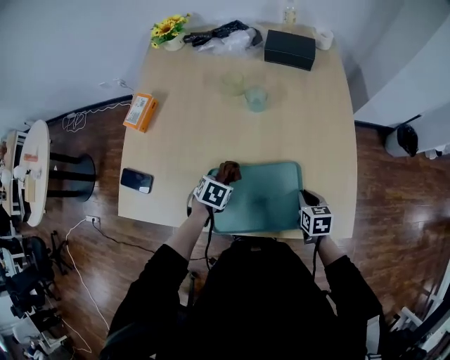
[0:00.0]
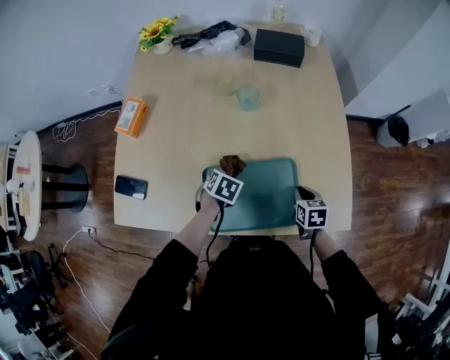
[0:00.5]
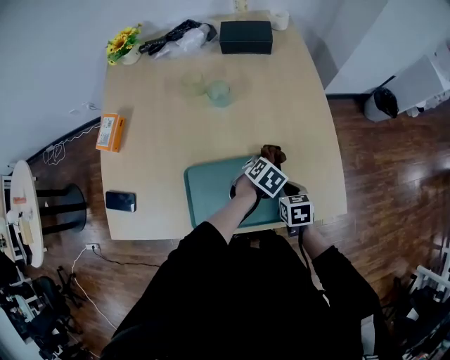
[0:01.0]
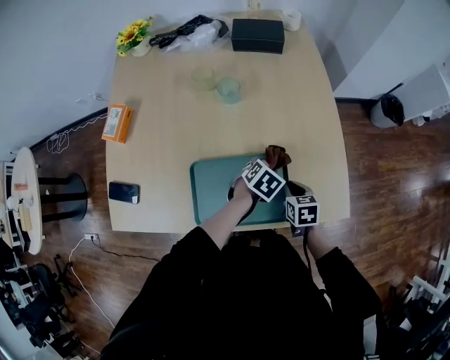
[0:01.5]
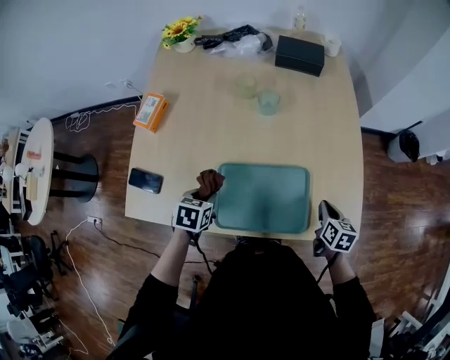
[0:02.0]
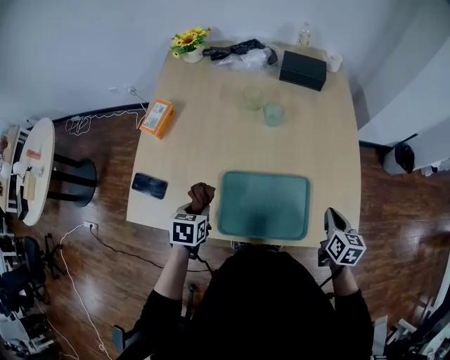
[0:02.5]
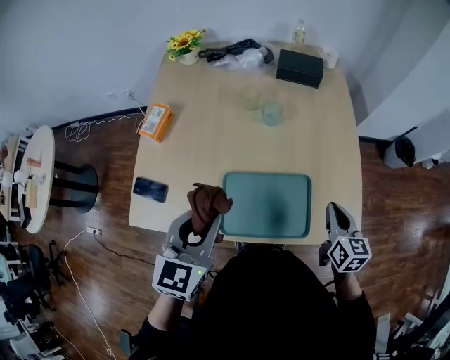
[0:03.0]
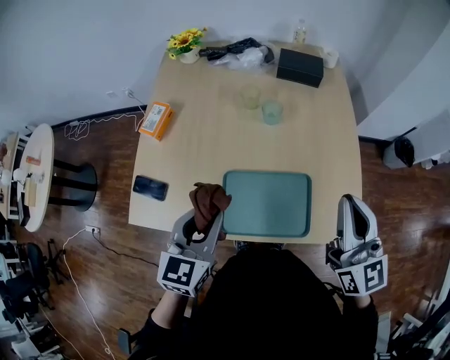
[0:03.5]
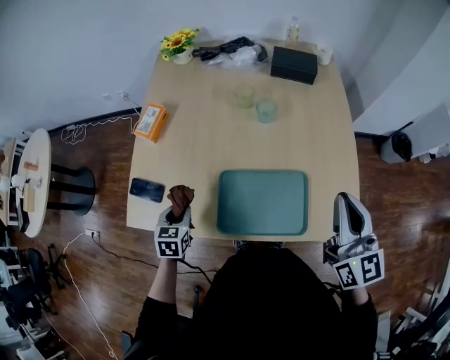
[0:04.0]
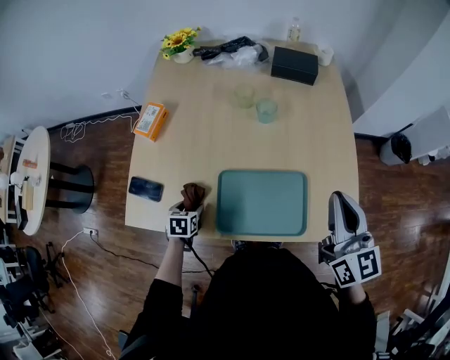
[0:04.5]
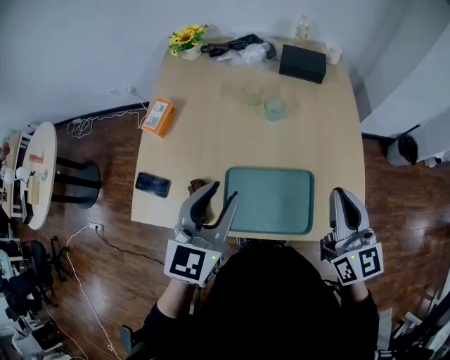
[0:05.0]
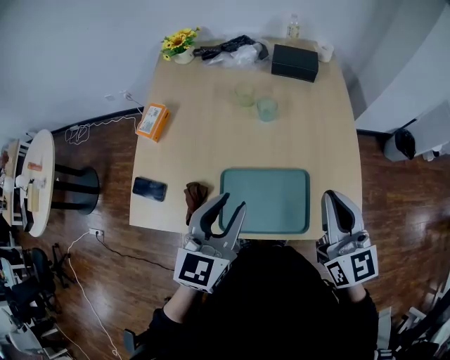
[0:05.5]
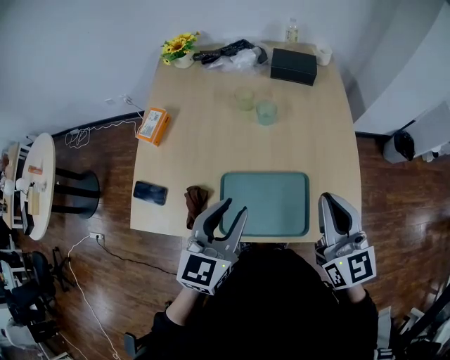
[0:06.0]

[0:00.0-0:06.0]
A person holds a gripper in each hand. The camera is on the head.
0:00.0 to 0:02.0: The right gripper changes place by about 5 cm, while the left gripper shifts some 10 cm upward and backward, and travels to the right and back again, roughly 25 cm each way.
0:02.0 to 0:04.0: The right gripper shifts roughly 30 cm upward, and points its fingers some 40 degrees further upward, while the left gripper moves to the left, approximately 10 cm, and reaches roughly 25 cm upward, then returns.
0:04.0 to 0:06.0: The left gripper travels upward and to the right by approximately 30 cm, and tips its fingers upward by roughly 30 degrees.

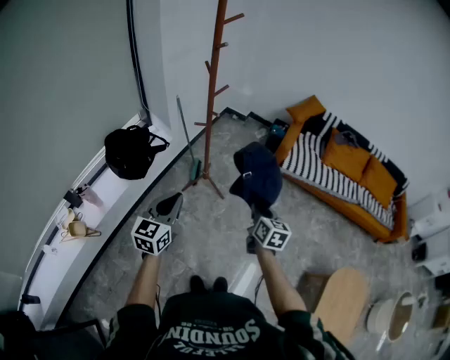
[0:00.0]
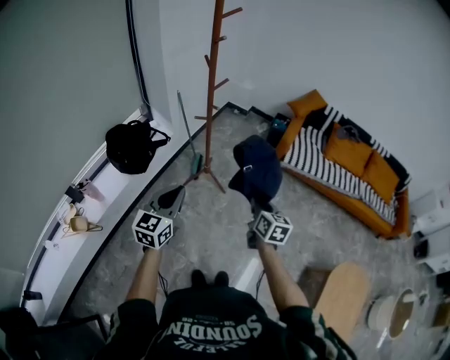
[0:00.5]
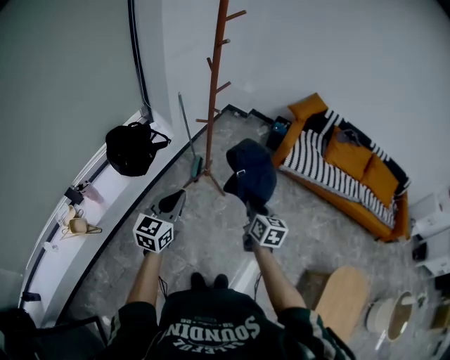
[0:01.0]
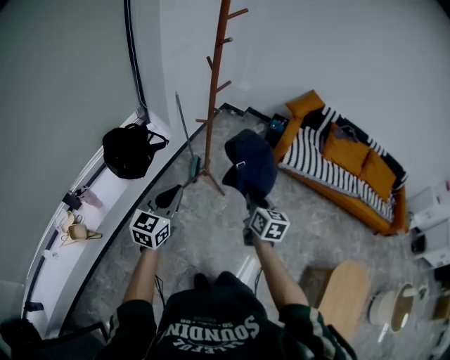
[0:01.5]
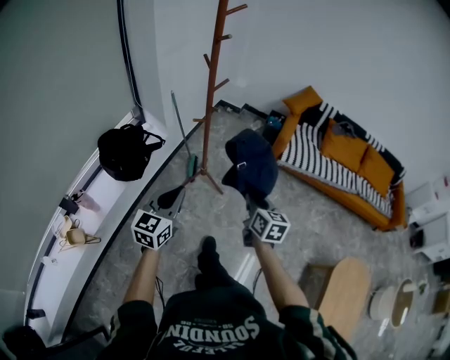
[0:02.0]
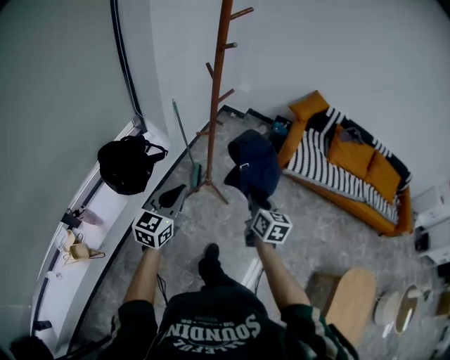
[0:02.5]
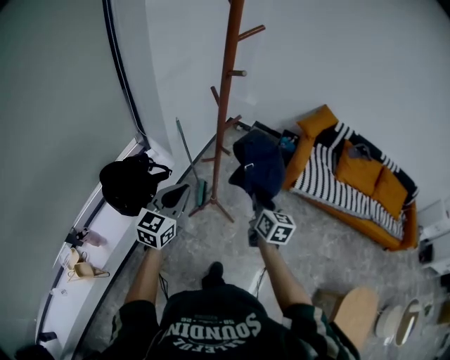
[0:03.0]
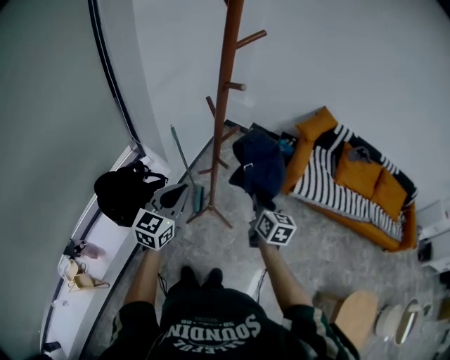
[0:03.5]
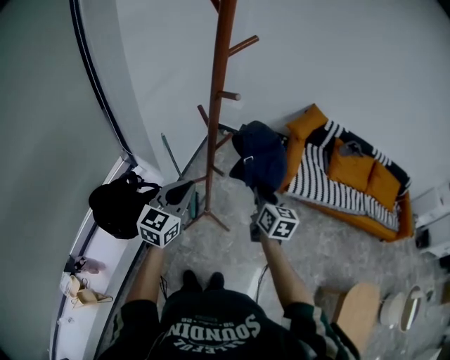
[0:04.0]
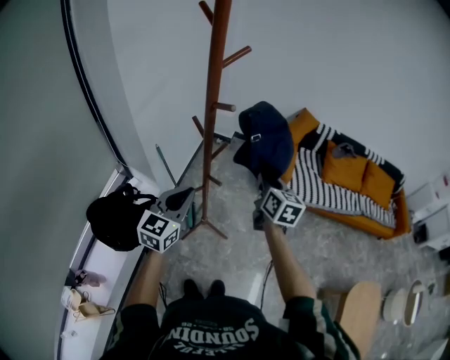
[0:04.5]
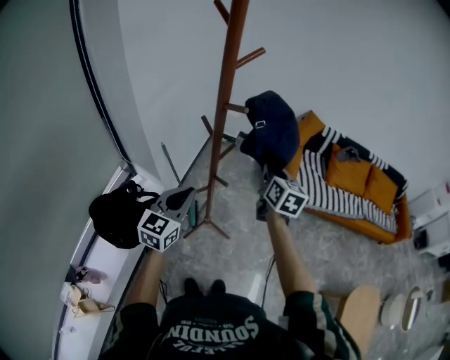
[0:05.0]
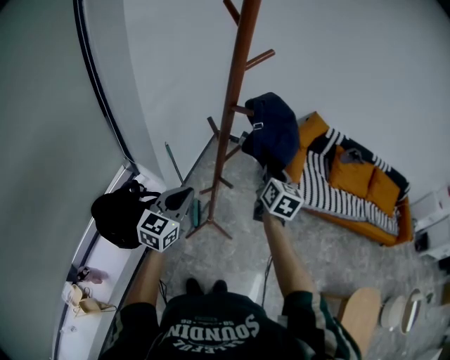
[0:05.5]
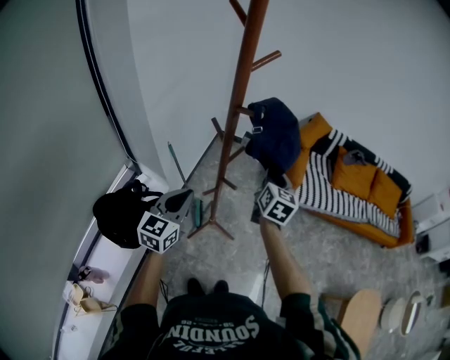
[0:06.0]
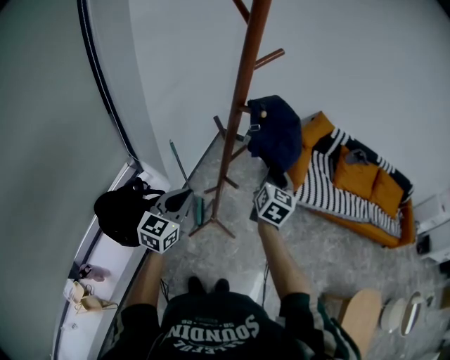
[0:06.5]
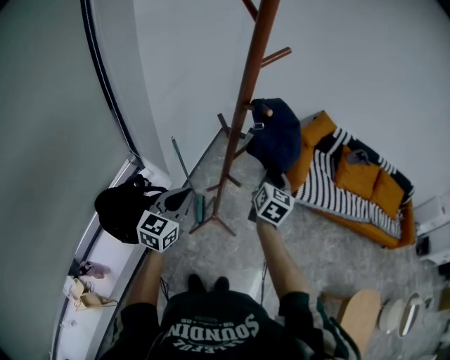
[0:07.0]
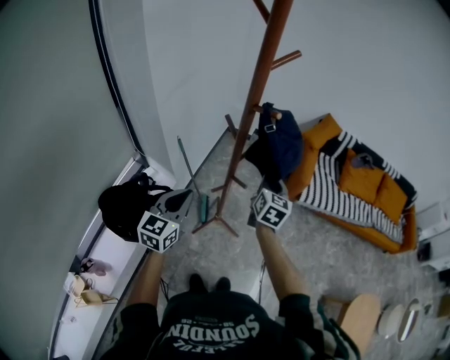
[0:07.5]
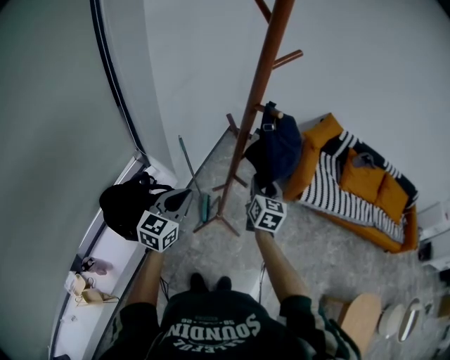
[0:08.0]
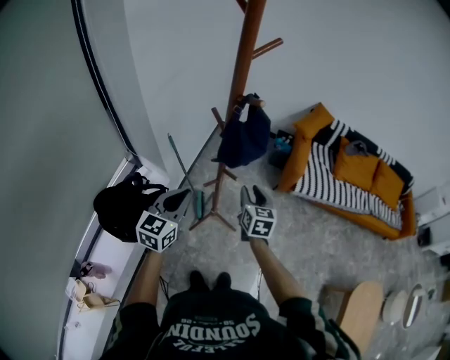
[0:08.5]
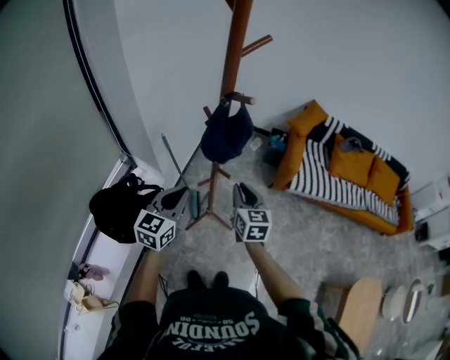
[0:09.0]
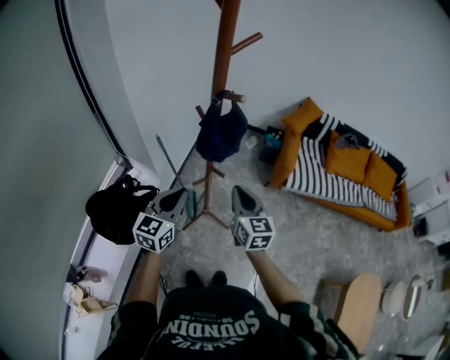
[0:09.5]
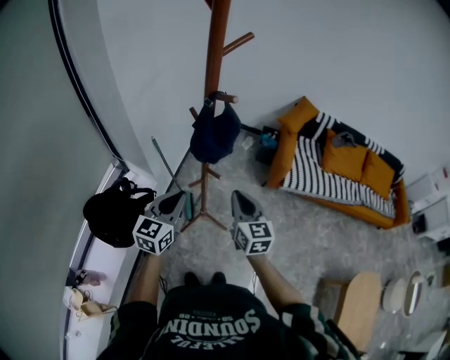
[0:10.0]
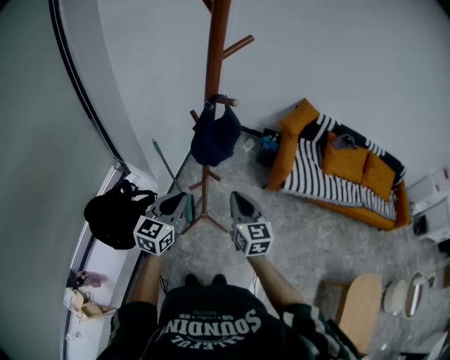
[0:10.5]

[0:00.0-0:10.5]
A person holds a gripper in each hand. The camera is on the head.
0:00.0 to 0:02.0: The right gripper goes approximately 5 cm to the left.
0:02.0 to 0:04.0: The grippers both shift forward by some 30 cm.
0:04.0 to 0:06.5: The right gripper heads forward and upward, covering approximately 10 cm, and turns by some 20 degrees. The left gripper goes some 5 cm to the left.
0:06.5 to 0:08.5: The right gripper shifts some 15 cm downward and backward, turns by some 20 degrees, and opens up.
0:08.5 to 0:10.5: The right gripper heads upward and backward, covering approximately 10 cm, and closes.

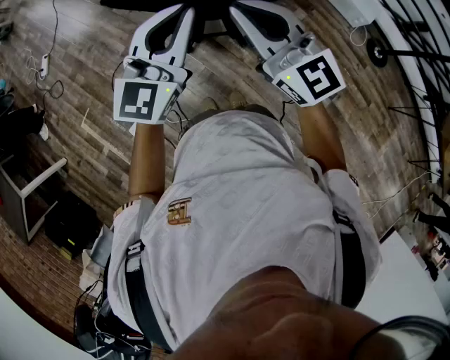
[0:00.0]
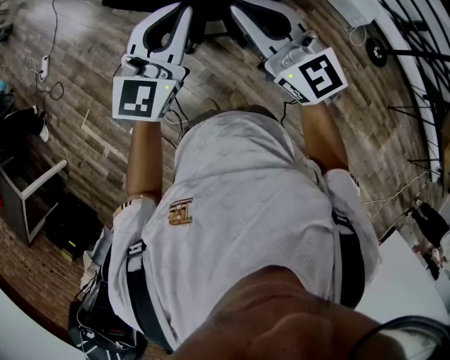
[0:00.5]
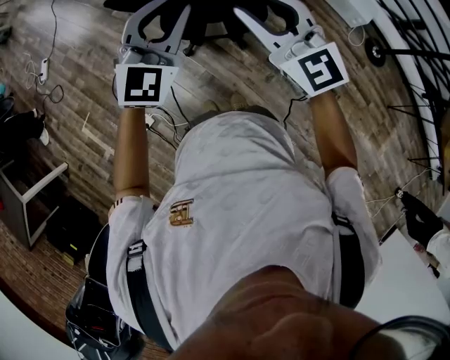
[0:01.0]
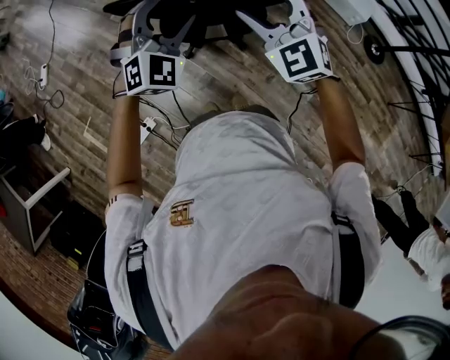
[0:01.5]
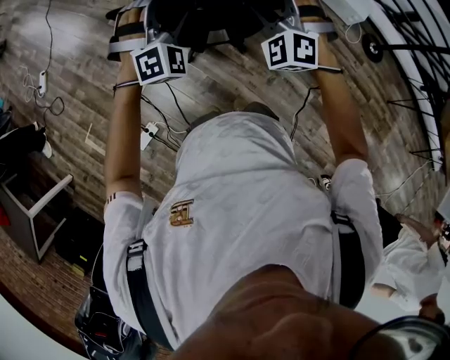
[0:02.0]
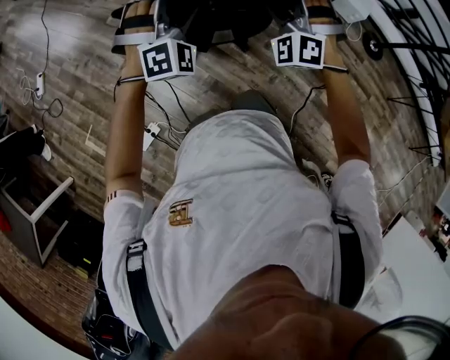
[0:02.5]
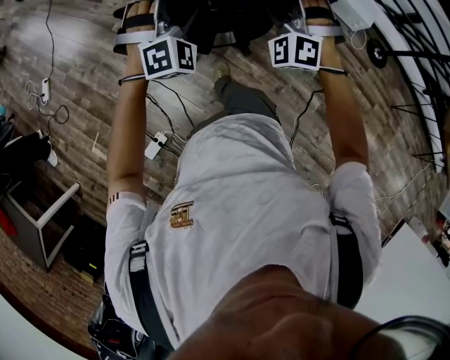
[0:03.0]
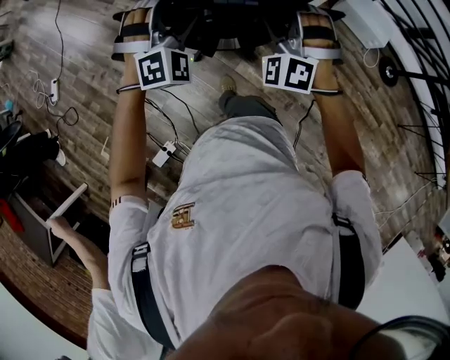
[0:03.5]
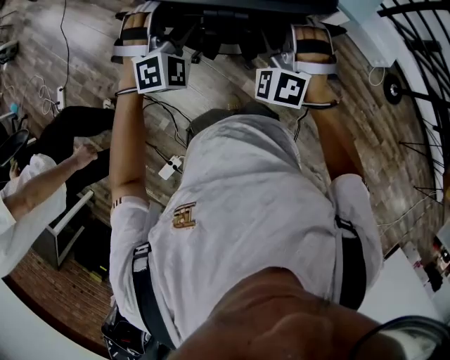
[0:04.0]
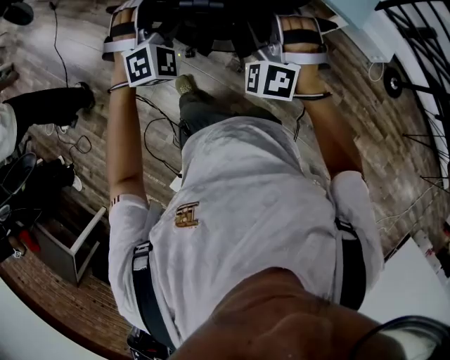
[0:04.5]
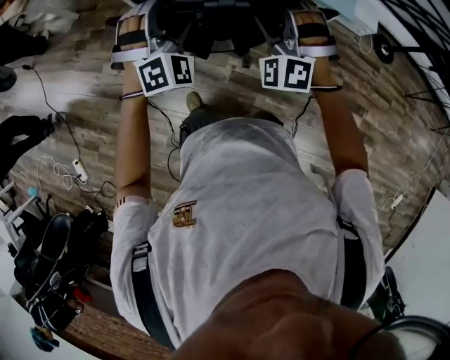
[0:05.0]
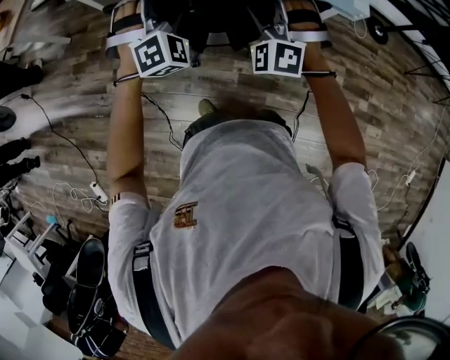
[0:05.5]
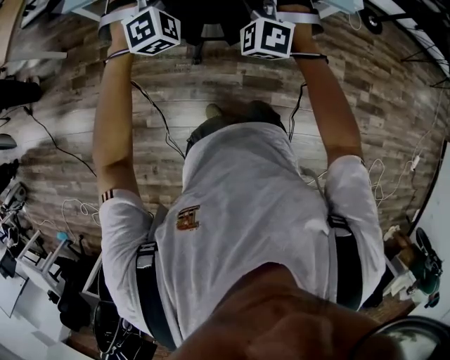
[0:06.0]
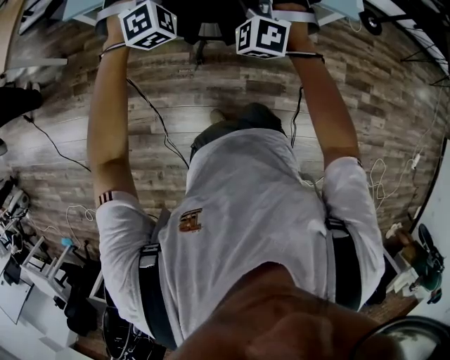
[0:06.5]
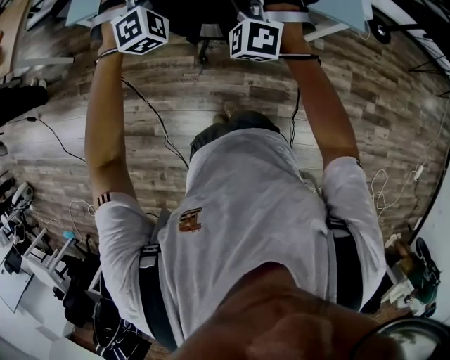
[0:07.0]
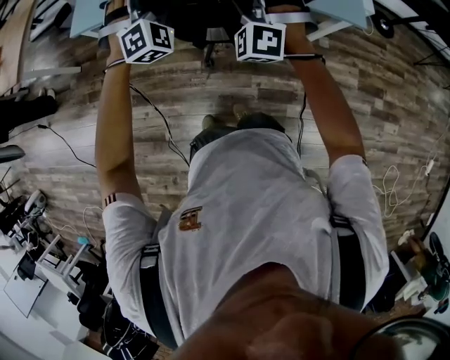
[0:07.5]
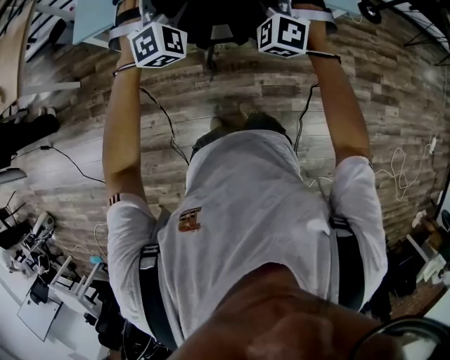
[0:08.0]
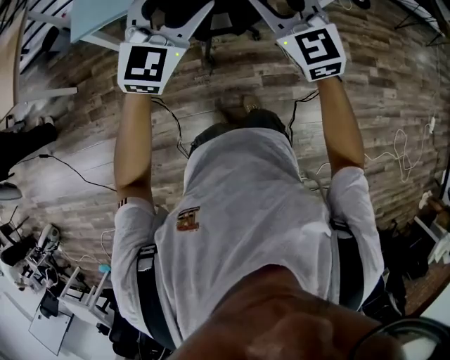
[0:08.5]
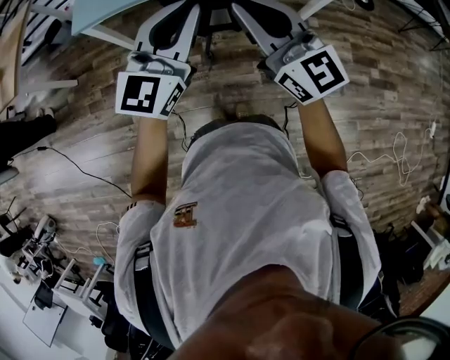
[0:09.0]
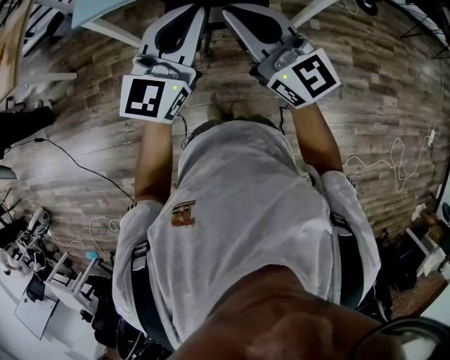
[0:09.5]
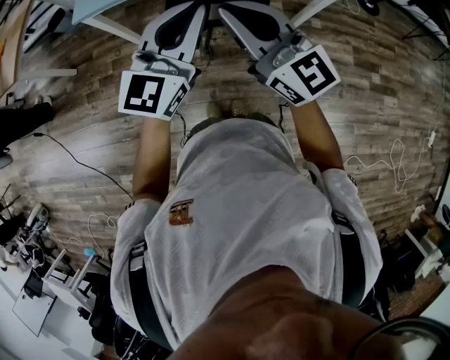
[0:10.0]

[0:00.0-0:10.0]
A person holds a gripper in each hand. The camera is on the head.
0:00.0 to 0:02.0: The grippers both shift forward and downward by approximately 15 cm. The left gripper rotates around the line of its fingers by some 60 degrees, clockwise from behind, and opens up; the right gripper twists about 60 degrees counterclockwise, seen from behind, and opens up.
0:02.0 to 0:04.0: The grippers both shift forward by some 40 cm.
0:04.0 to 0:06.0: The two grippers travel together, some 50 cm. The right gripper turns by approximately 30 degrees; the left gripper swivels about 30 degrees.
0:06.0 to 0:08.0: The left gripper goes about 10 cm forward and to the left. Meanwhile the right gripper shifts roughly 5 cm forward.
0:08.0 to 0:10.0: The left gripper heads backward, covering some 25 cm, rolls counterclockwise, seen from behind, by about 60 degrees, and closes. The right gripper moves backward and upward, some 25 cm, changes its angle by roughly 90 degrees, and closes.
